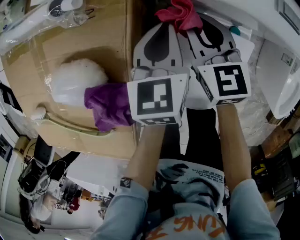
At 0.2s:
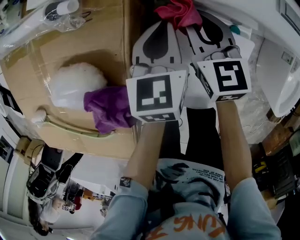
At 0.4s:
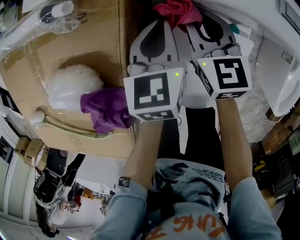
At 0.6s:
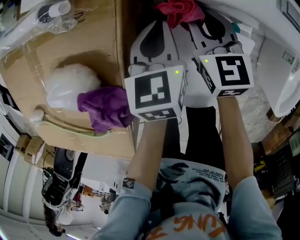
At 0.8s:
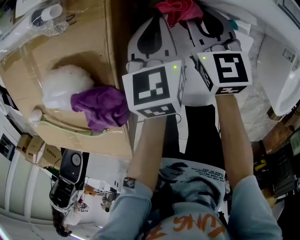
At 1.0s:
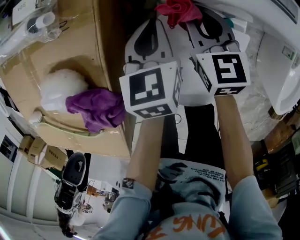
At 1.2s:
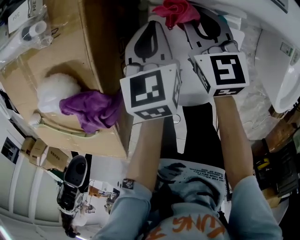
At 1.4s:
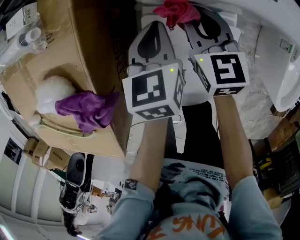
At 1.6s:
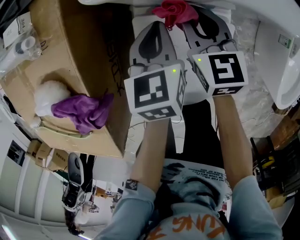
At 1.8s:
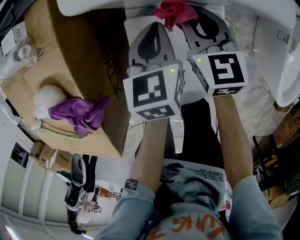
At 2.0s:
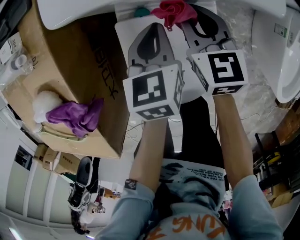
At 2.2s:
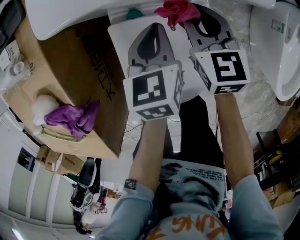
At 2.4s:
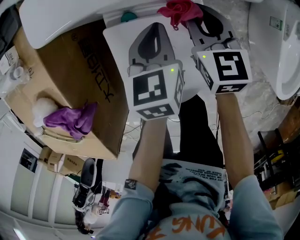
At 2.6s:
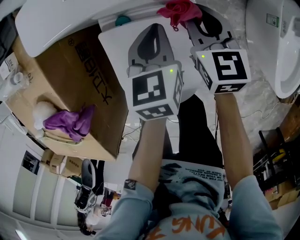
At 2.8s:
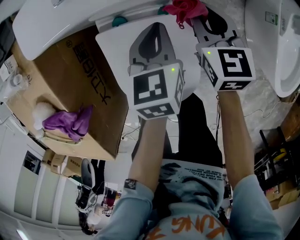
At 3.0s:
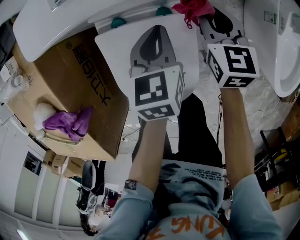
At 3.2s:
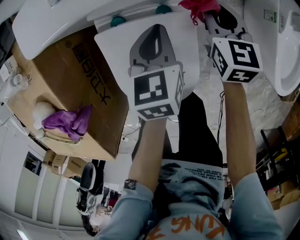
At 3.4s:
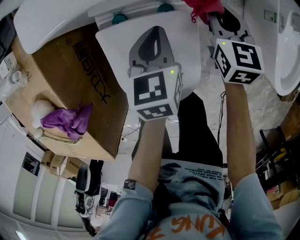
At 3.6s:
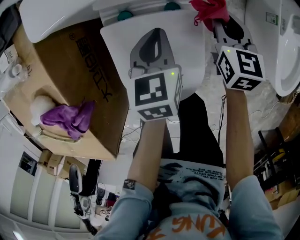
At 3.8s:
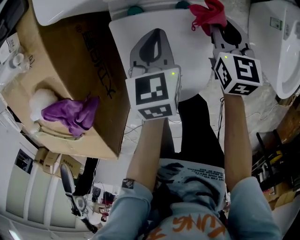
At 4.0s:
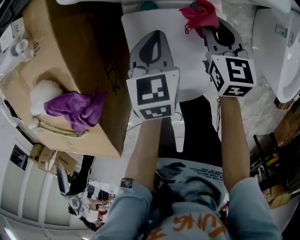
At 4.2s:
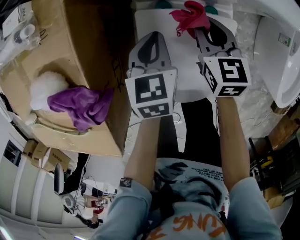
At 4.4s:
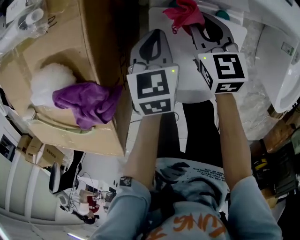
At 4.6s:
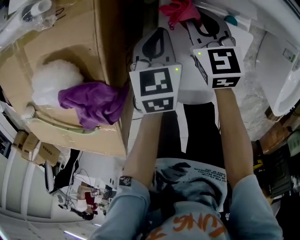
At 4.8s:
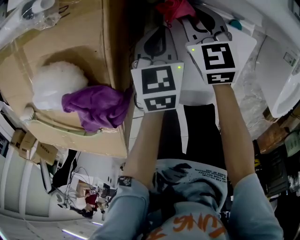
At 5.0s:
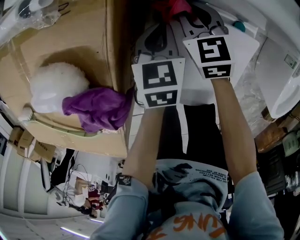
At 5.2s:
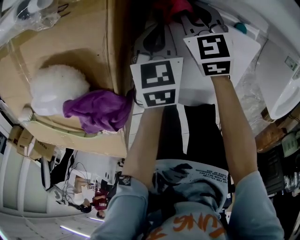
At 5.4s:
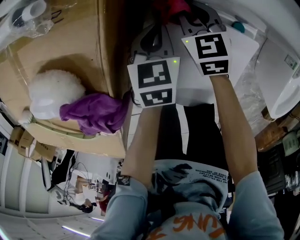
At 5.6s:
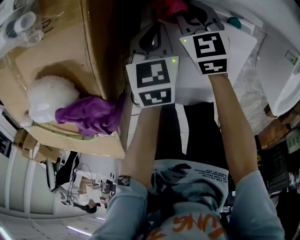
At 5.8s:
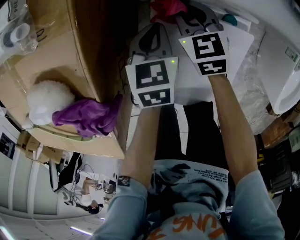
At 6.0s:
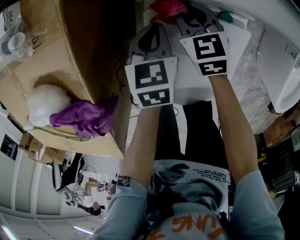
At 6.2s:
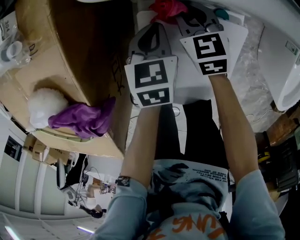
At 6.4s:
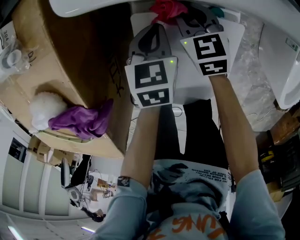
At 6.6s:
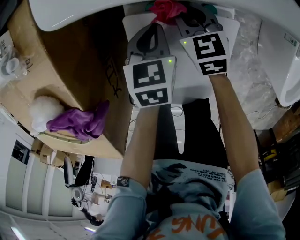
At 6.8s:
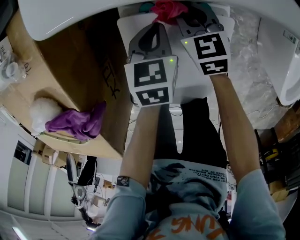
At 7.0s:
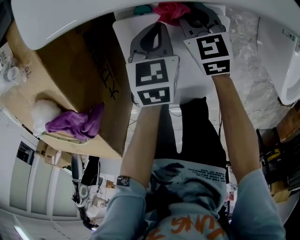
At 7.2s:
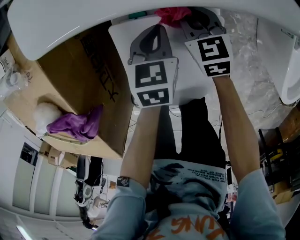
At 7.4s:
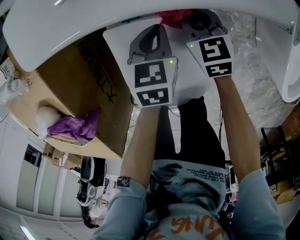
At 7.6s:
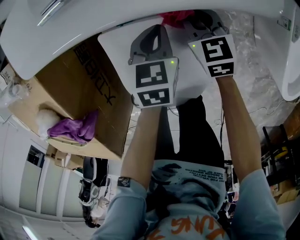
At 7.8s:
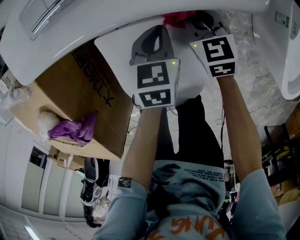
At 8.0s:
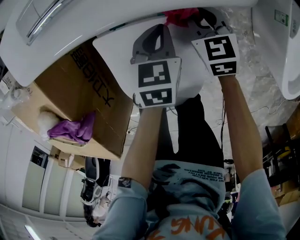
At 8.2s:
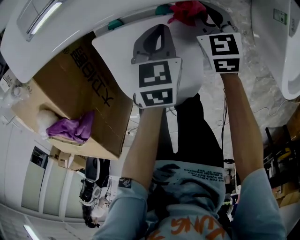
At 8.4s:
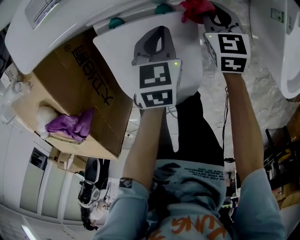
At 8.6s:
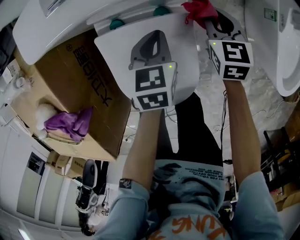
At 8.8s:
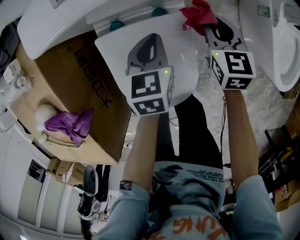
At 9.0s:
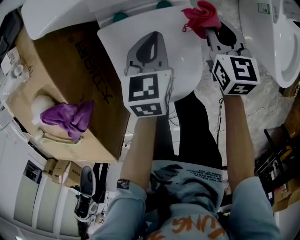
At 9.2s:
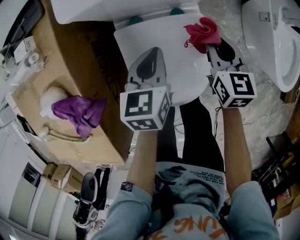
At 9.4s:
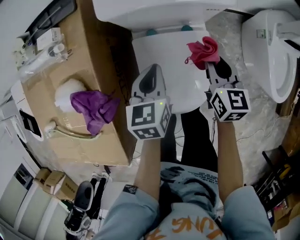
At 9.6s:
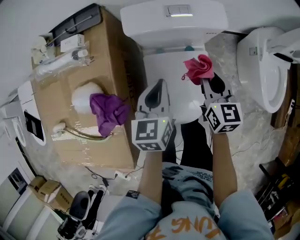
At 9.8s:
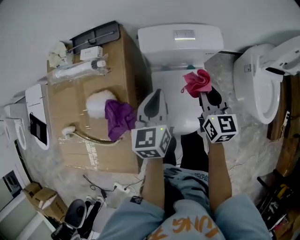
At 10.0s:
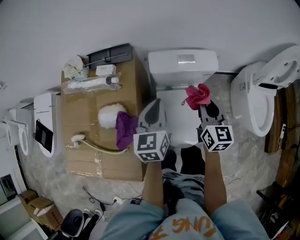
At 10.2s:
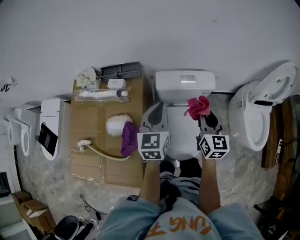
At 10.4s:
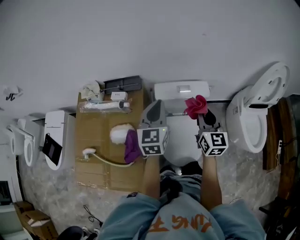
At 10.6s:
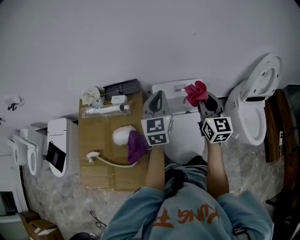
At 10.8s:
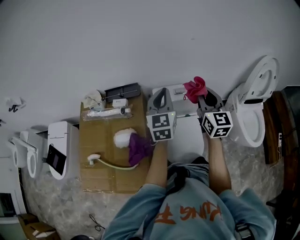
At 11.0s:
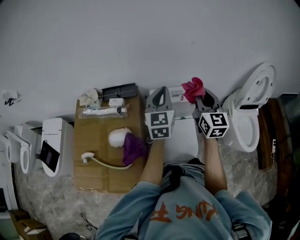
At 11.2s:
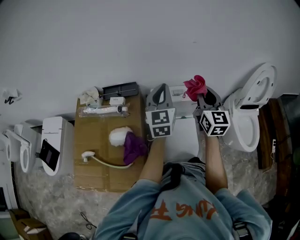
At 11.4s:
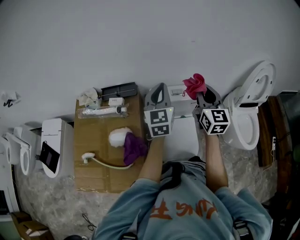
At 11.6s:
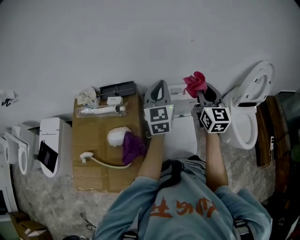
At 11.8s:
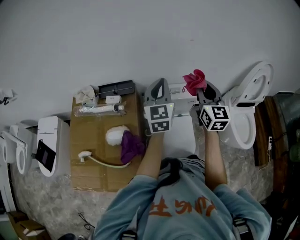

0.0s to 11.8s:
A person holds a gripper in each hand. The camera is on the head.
0.0s to 1.4s: The two grippers go some 10 cm to the right.
1.4s to 3.0s: The grippers both shift to the right by roughly 20 cm.
3.0s to 4.4s: Both grippers move to the left, approximately 25 cm.
4.4s to 6.0s: The grippers both shift downward by about 5 cm. The right gripper travels to the left and back again, about 10 cm each way.
6.0s to 7.4s: Both grippers travel together to the right, some 15 cm.
7.4s to 8.8s: The right gripper heads to the right and upward, covering roughly 15 cm. The left gripper is displaced upward and to the right by roughly 10 cm.
8.8s to 10.4s: The grippers both shift upward and to the left by about 50 cm. The right gripper tips its fingers upward by approximately 30 degrees. The left gripper angles its fingers upward, by some 40 degrees.
10.4s to 11.8s: The two grippers go roughly 10 cm upward.

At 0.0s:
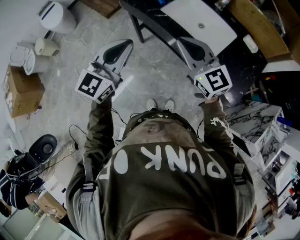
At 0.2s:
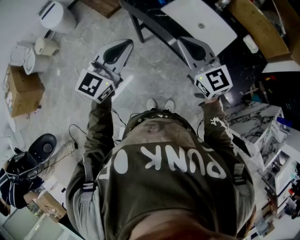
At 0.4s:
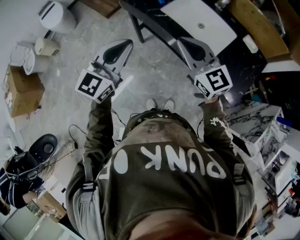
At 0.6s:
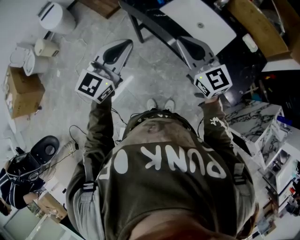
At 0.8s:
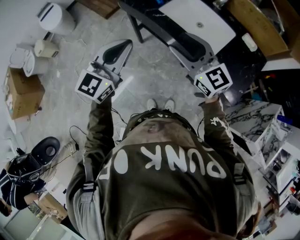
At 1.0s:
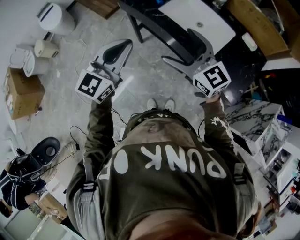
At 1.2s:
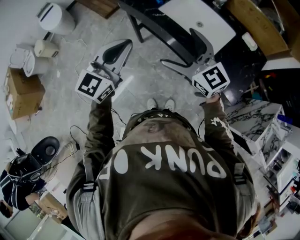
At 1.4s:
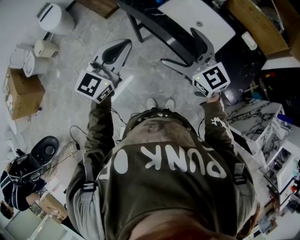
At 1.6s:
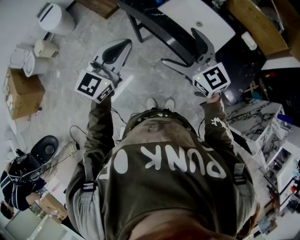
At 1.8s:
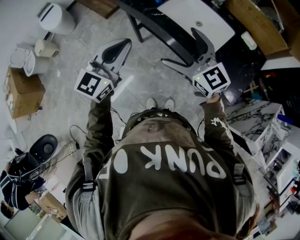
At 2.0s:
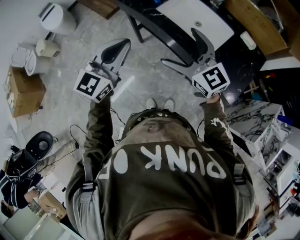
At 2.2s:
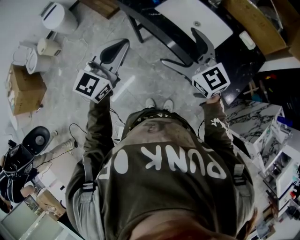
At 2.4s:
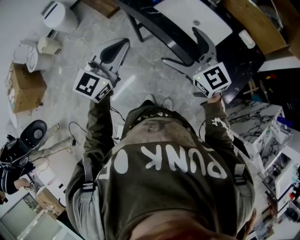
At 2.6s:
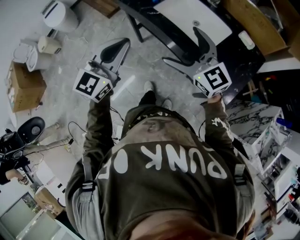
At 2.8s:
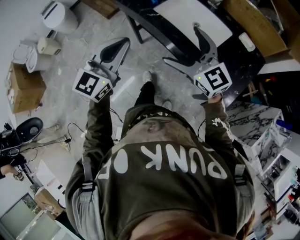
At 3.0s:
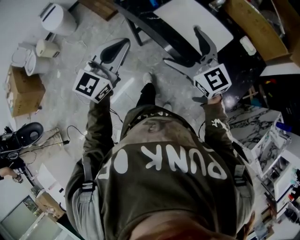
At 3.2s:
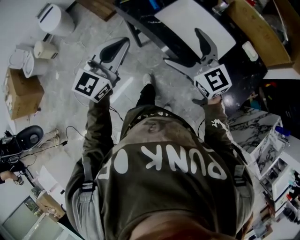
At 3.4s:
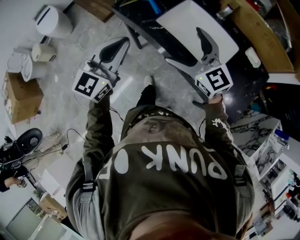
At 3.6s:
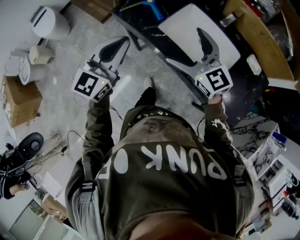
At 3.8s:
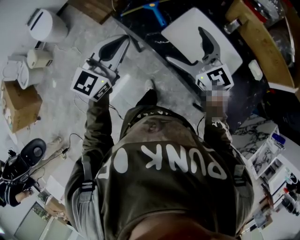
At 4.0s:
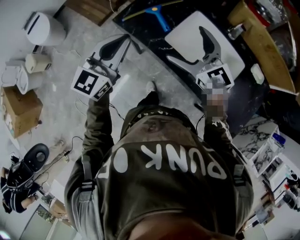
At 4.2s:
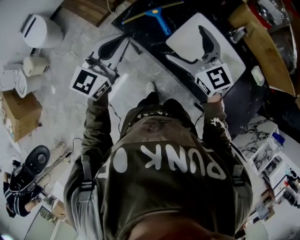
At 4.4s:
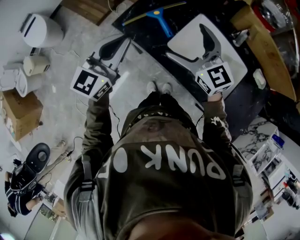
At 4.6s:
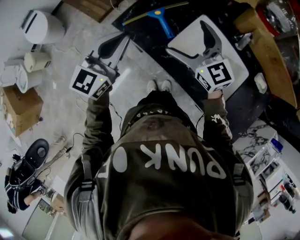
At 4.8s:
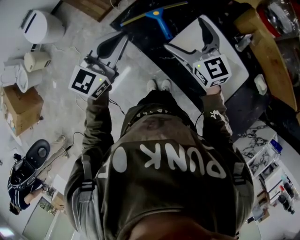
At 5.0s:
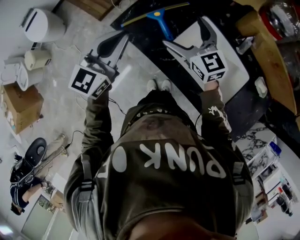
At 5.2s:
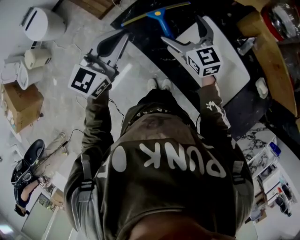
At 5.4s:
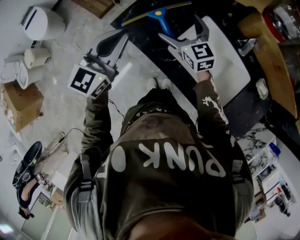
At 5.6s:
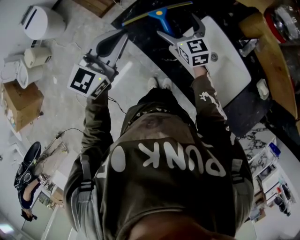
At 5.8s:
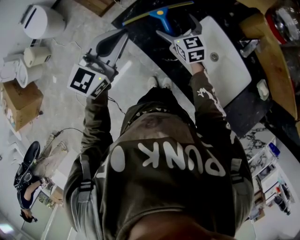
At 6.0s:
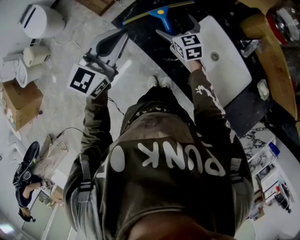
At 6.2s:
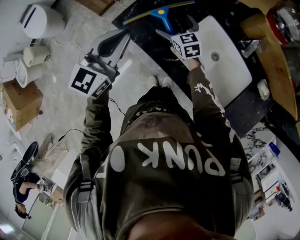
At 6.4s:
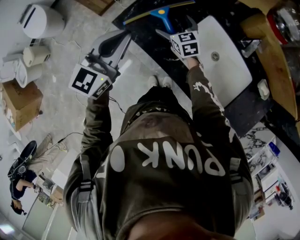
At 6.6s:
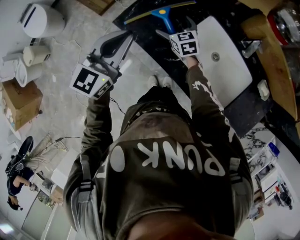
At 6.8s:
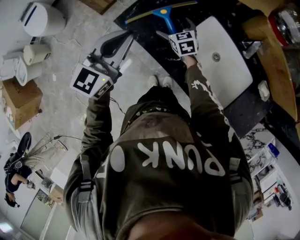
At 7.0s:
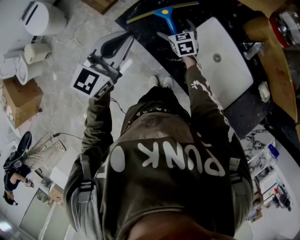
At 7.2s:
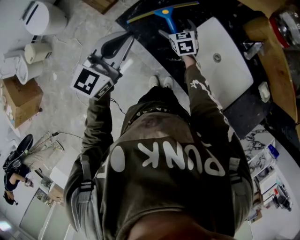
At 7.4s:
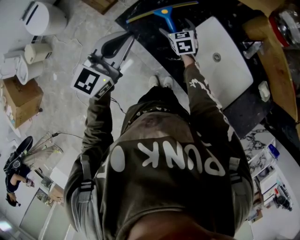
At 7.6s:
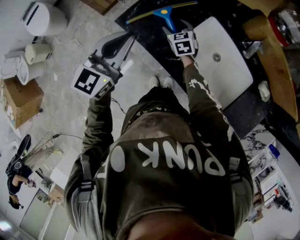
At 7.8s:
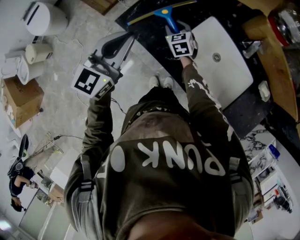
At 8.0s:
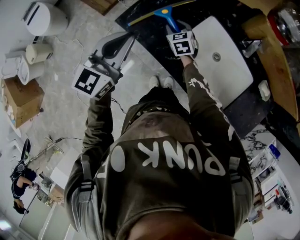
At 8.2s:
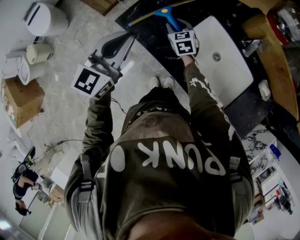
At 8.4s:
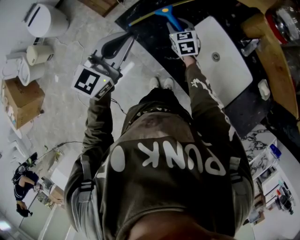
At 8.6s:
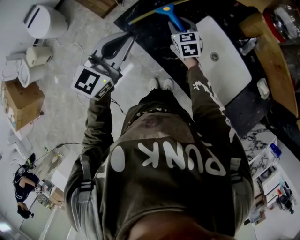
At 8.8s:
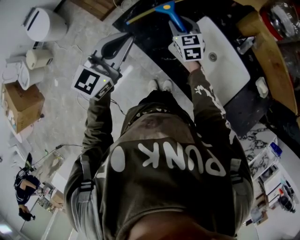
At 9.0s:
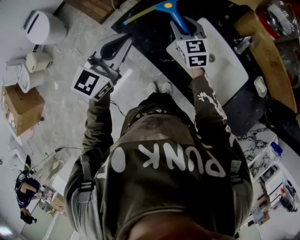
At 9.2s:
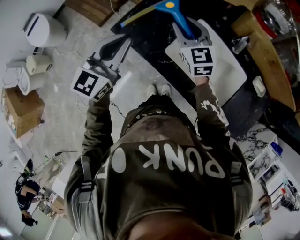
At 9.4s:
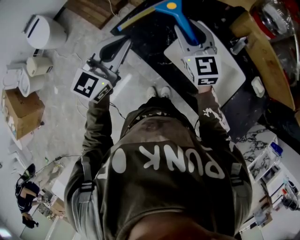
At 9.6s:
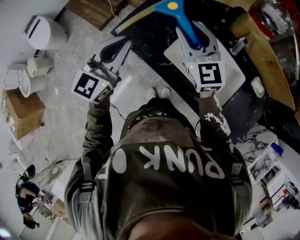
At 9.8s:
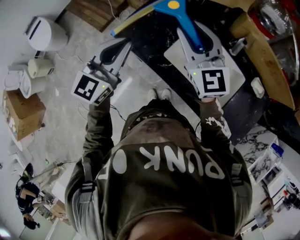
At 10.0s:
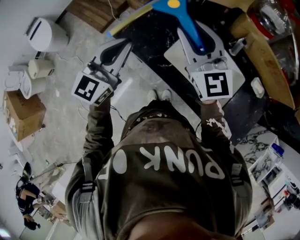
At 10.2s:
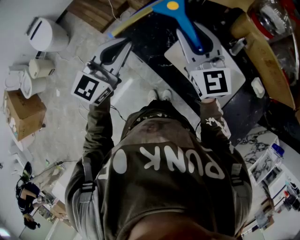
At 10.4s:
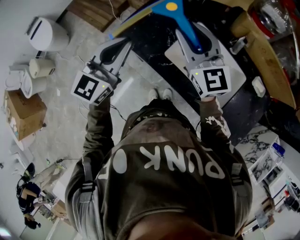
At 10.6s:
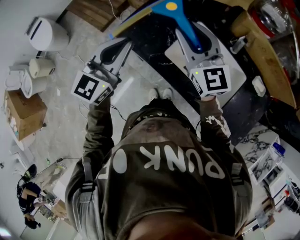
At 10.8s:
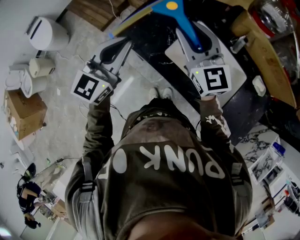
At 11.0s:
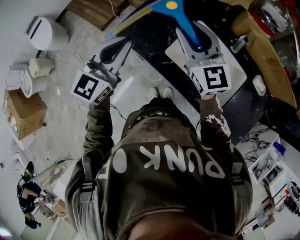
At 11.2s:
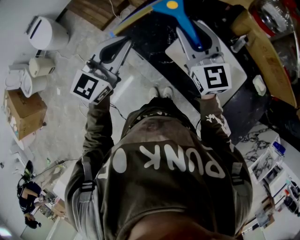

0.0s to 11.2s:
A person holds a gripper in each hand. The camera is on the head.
0.0s to 1.6s: The right gripper opens its fingers.
1.6s to 3.2s: Both grippers move forward, about 5 cm.
3.2s to 4.8s: Both grippers travel together forward, approximately 30 cm.
4.8s to 6.4s: The right gripper travels downward and forward by approximately 20 cm, and turns by about 20 degrees.
6.4s to 8.0s: The right gripper closes up.
8.0s to 9.6s: The right gripper travels upward by approximately 30 cm, and tilts its fingers about 30 degrees upward, while the left gripper ends up roughly 5 cm from where it was.
9.6s to 11.2s: The grippers make only small movements.

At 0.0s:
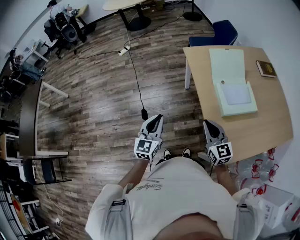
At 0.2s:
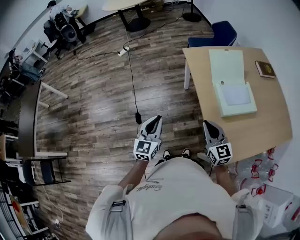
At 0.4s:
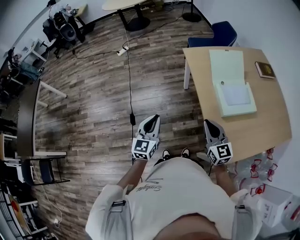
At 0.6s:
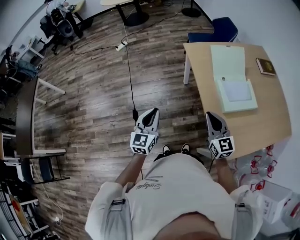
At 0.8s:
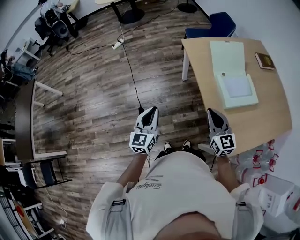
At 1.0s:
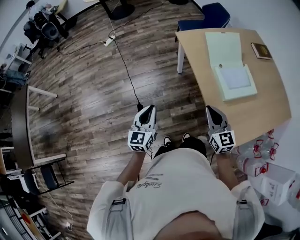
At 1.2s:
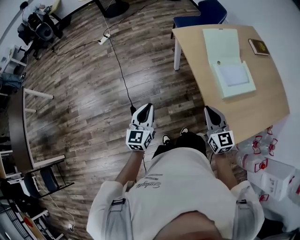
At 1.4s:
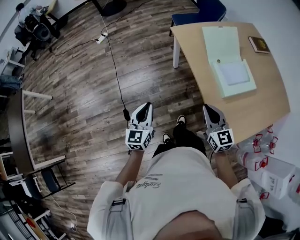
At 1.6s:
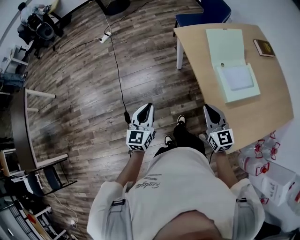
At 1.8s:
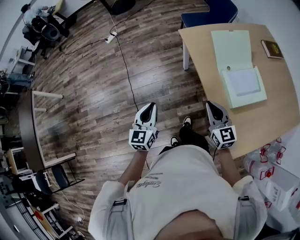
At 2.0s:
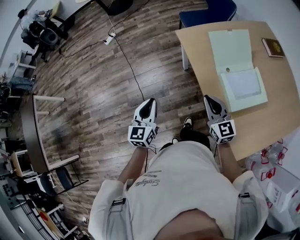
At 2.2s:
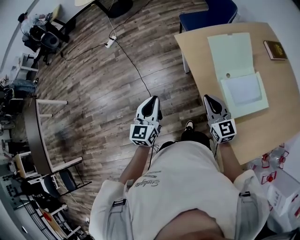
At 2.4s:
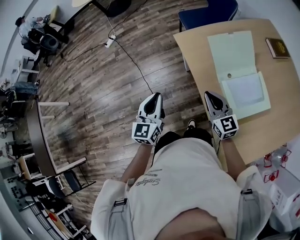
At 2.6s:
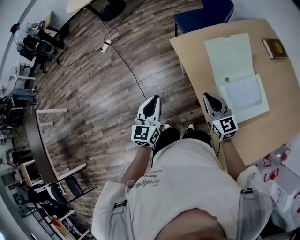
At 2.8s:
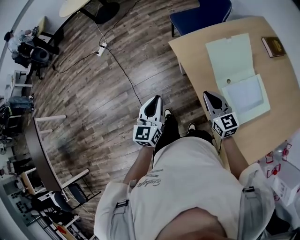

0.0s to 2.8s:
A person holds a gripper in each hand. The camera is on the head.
0.0s to 1.4s: The right gripper shifts by approximately 5 cm; the left gripper shifts about 5 cm to the left.
1.4s to 2.8s: The two grippers go roughly 30 cm forward.
